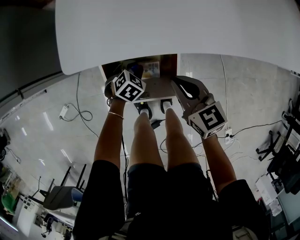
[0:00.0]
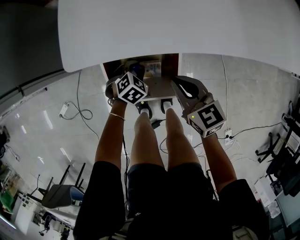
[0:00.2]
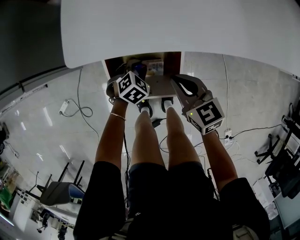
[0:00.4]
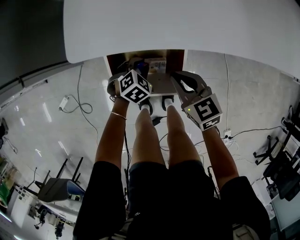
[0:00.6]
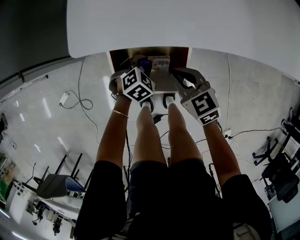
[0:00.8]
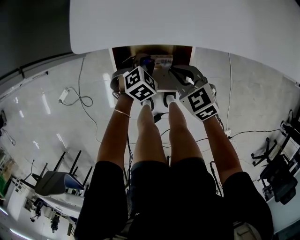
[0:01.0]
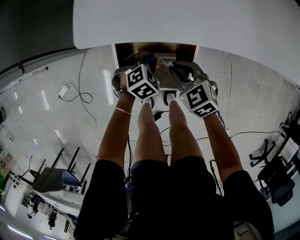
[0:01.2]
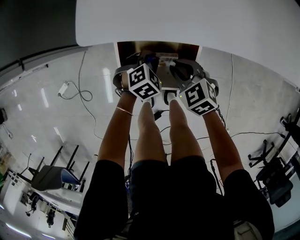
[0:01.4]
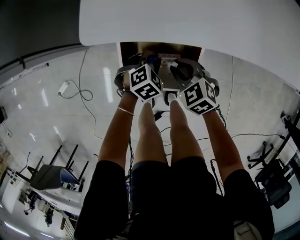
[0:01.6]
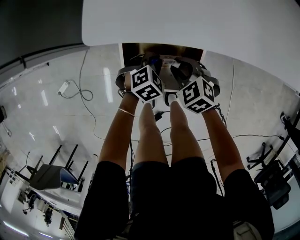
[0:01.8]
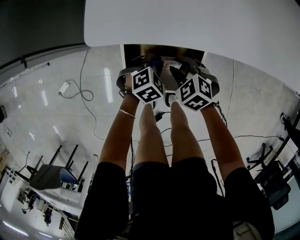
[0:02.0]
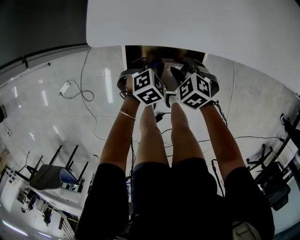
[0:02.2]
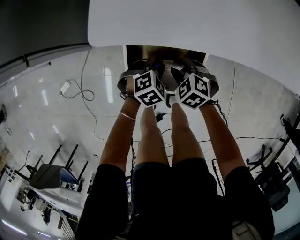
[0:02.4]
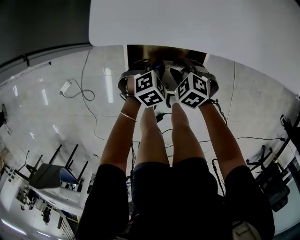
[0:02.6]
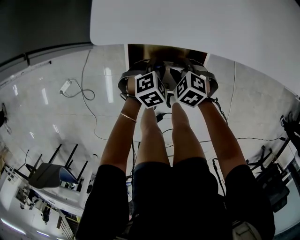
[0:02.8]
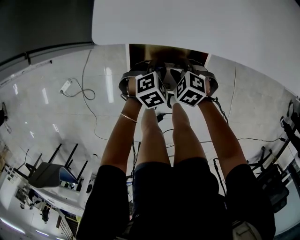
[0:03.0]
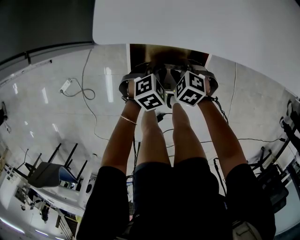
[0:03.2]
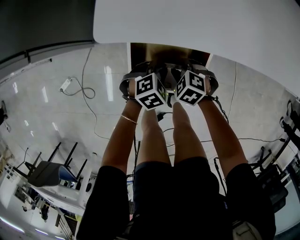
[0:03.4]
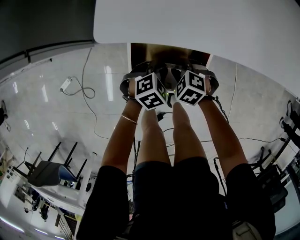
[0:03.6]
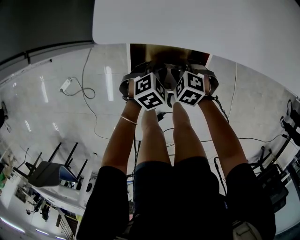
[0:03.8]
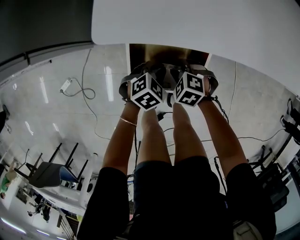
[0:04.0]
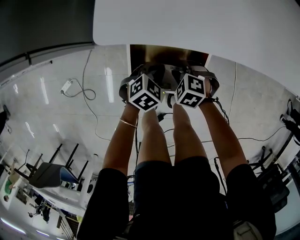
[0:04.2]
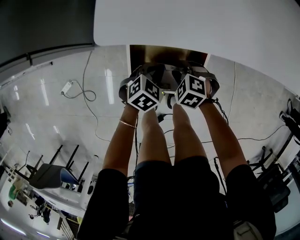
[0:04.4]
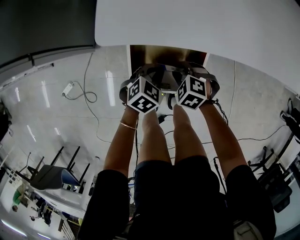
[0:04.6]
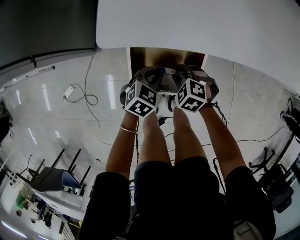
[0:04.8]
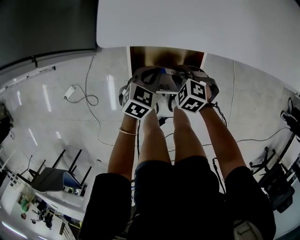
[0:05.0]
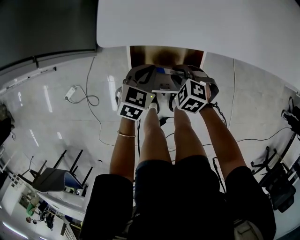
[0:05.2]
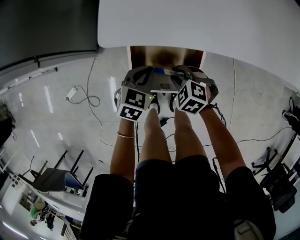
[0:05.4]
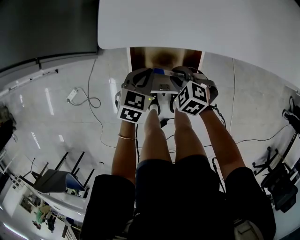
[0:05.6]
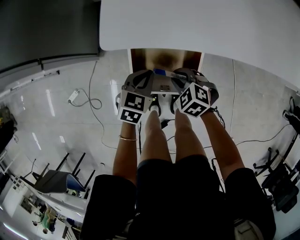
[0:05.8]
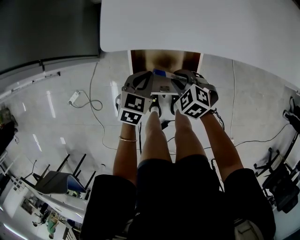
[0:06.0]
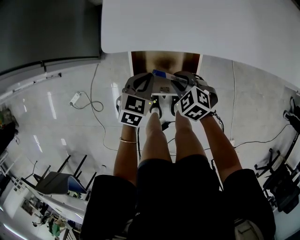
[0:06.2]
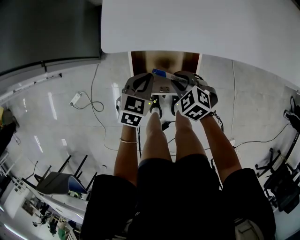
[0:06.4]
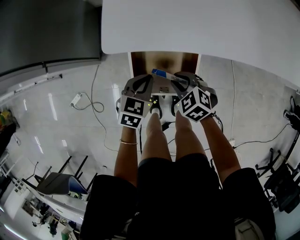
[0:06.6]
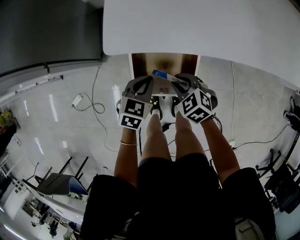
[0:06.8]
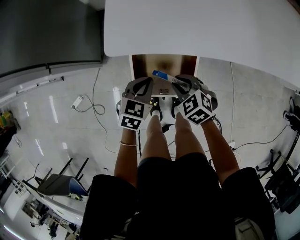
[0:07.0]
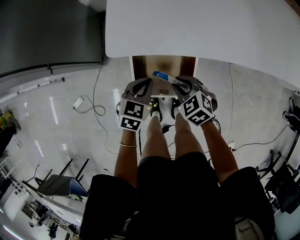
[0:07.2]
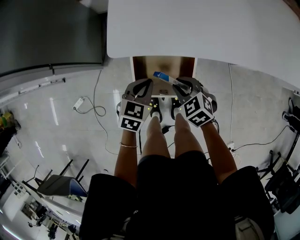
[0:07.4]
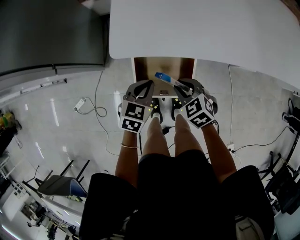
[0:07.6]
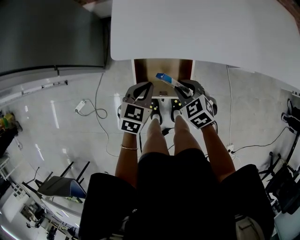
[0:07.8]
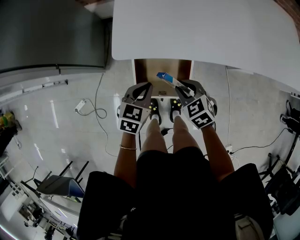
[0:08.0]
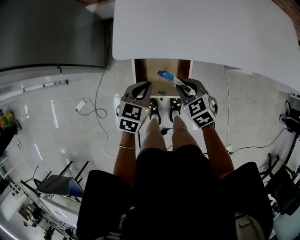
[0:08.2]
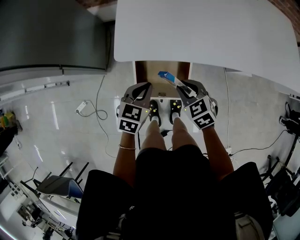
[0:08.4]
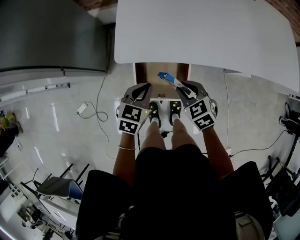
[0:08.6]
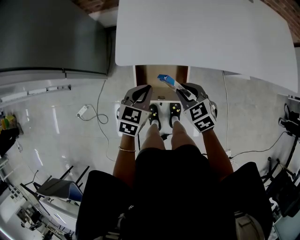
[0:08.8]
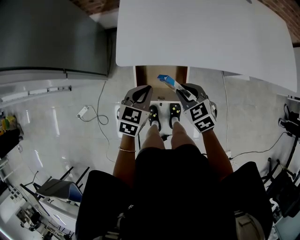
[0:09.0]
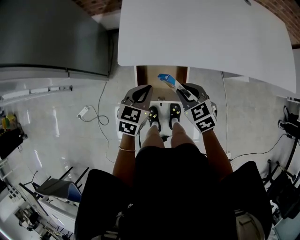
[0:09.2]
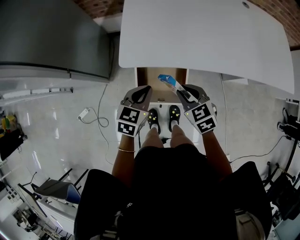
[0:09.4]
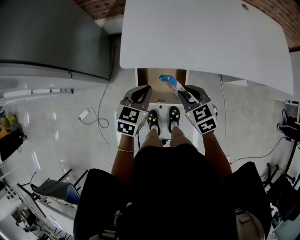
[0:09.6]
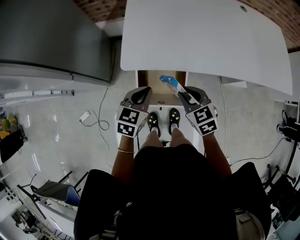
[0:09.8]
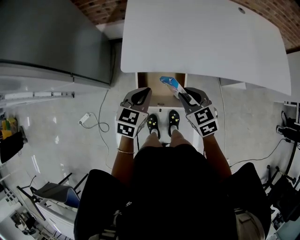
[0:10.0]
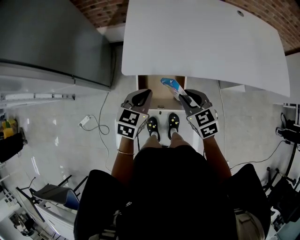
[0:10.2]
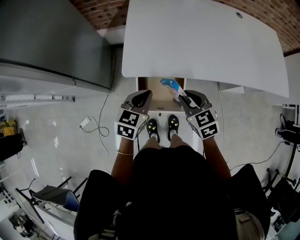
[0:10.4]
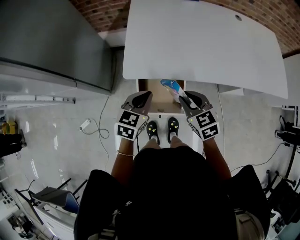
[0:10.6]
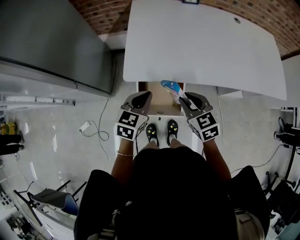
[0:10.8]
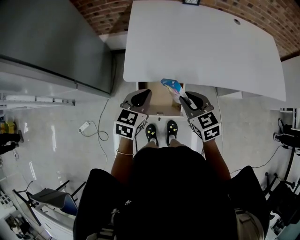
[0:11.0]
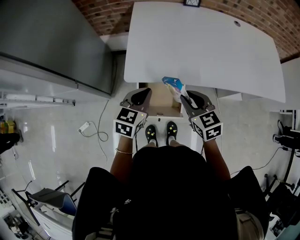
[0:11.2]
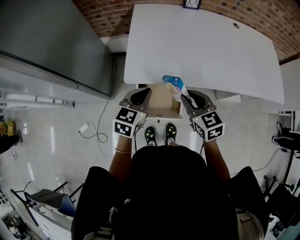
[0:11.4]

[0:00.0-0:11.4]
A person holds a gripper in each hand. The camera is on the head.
0:00.0 to 0:01.4: The right gripper goes about 10 cm downward and to the left, and swivels some 40 degrees.
0:01.4 to 0:02.8: The right gripper shifts roughly 5 cm downward, and swivels approximately 20 degrees.
0:02.8 to 0:04.2: The grippers move only a little.
0:04.2 to 0:05.6: Both grippers travel together upward, roughly 5 cm. The left gripper swivels some 20 degrees.
0:05.6 to 0:07.2: Both grippers travel together upward, roughly 5 cm.
0:07.2 to 0:08.6: The grippers both shift upward by roughly 10 cm.
0:08.6 to 0:10.0: The grippers both shift upward by roughly 10 cm.
0:10.0 to 0:11.4: Both grippers move upward, about 5 cm.

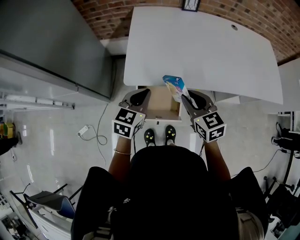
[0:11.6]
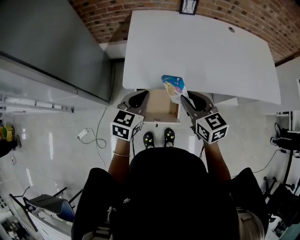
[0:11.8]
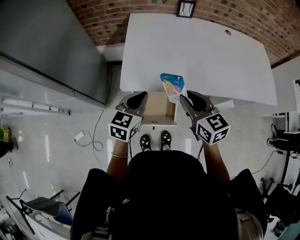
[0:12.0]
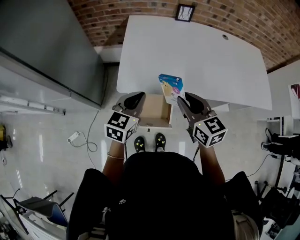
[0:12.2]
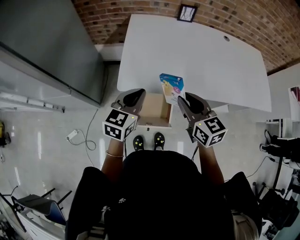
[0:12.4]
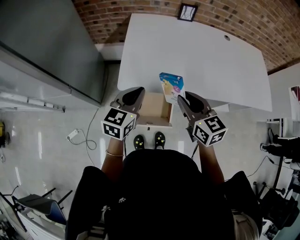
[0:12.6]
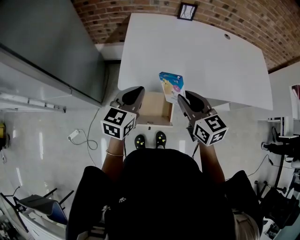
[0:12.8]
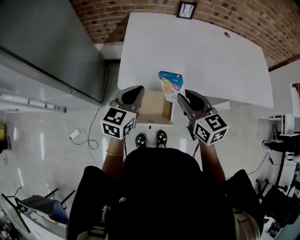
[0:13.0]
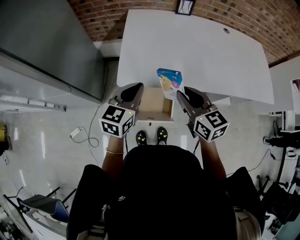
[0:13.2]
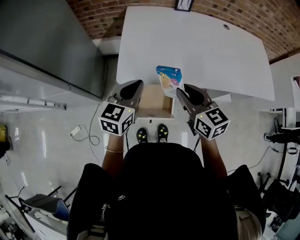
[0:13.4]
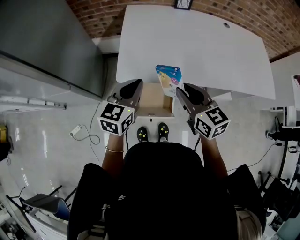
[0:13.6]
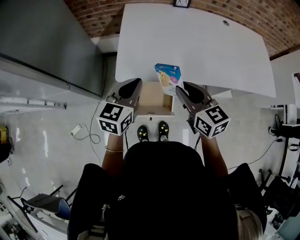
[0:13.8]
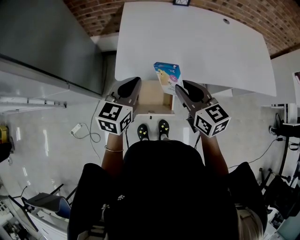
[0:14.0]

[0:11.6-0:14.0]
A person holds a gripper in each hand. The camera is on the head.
0:11.6 to 0:12.8: The right gripper shifts some 5 cm upward.
0:12.8 to 0:14.0: Both grippers stay about where they are.

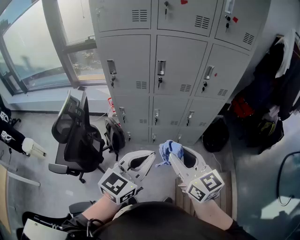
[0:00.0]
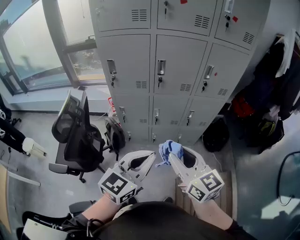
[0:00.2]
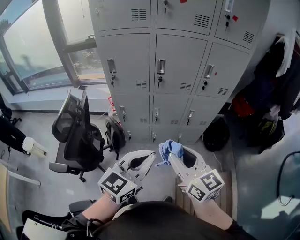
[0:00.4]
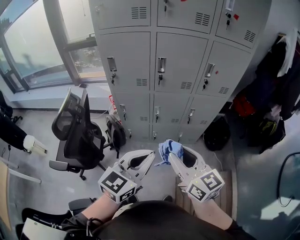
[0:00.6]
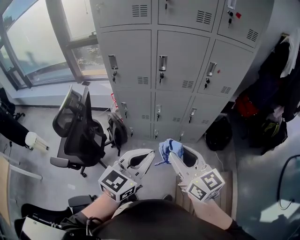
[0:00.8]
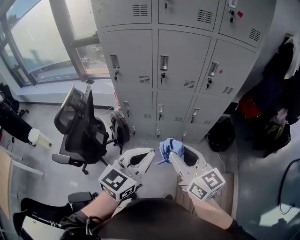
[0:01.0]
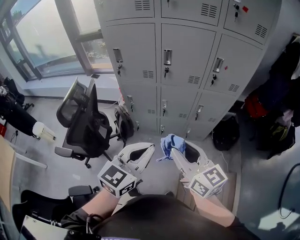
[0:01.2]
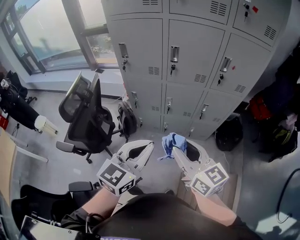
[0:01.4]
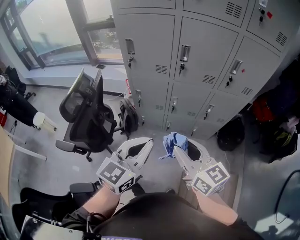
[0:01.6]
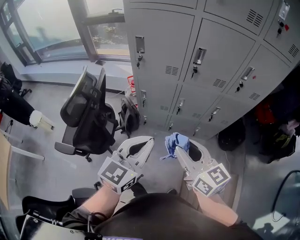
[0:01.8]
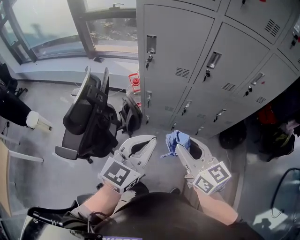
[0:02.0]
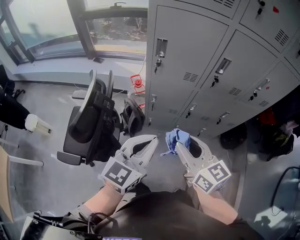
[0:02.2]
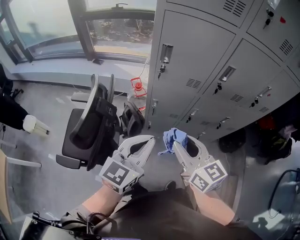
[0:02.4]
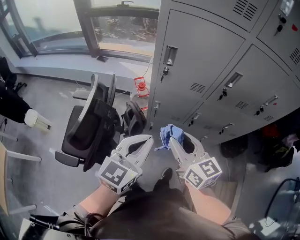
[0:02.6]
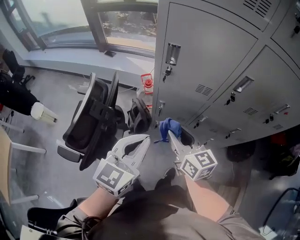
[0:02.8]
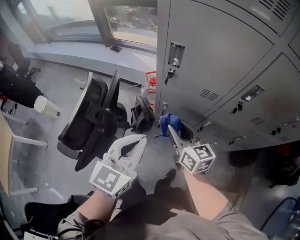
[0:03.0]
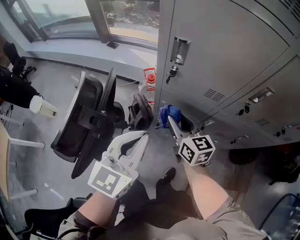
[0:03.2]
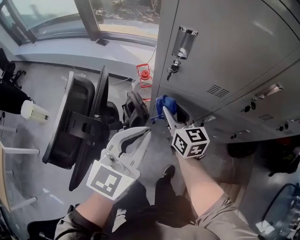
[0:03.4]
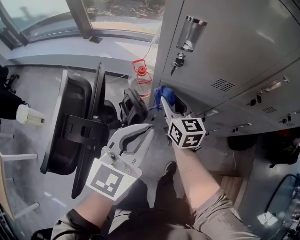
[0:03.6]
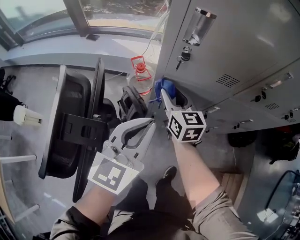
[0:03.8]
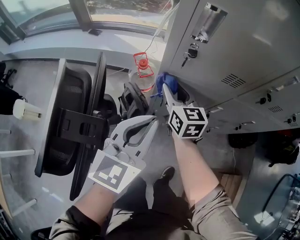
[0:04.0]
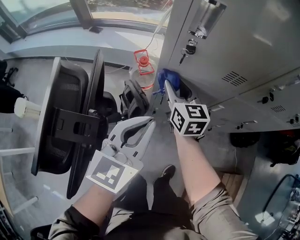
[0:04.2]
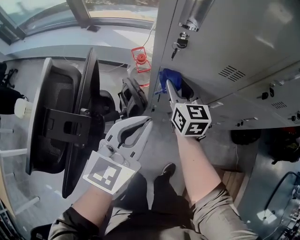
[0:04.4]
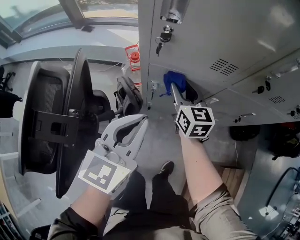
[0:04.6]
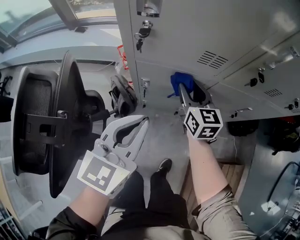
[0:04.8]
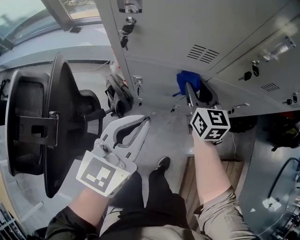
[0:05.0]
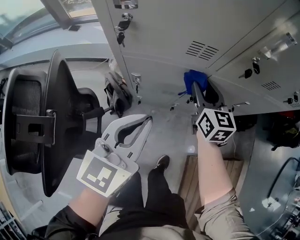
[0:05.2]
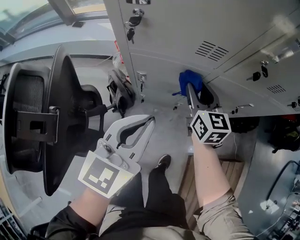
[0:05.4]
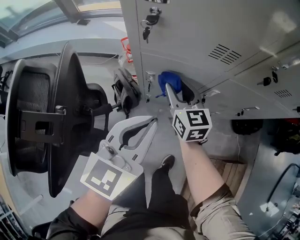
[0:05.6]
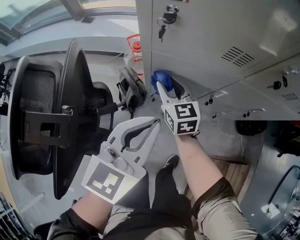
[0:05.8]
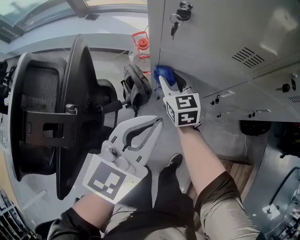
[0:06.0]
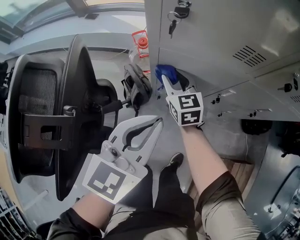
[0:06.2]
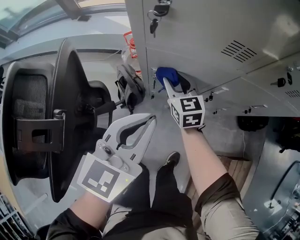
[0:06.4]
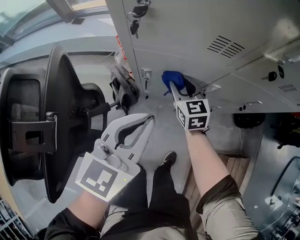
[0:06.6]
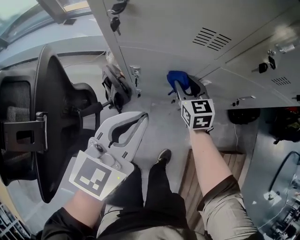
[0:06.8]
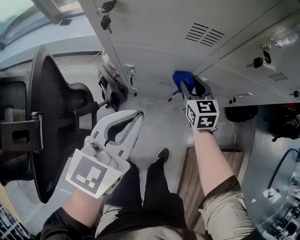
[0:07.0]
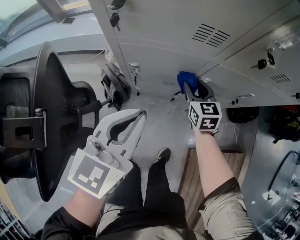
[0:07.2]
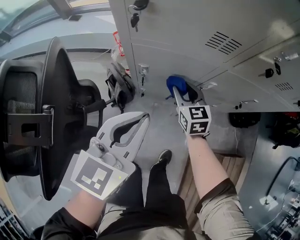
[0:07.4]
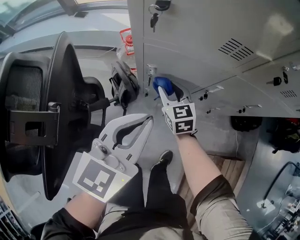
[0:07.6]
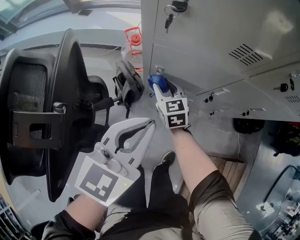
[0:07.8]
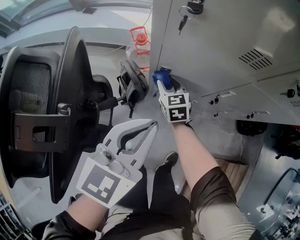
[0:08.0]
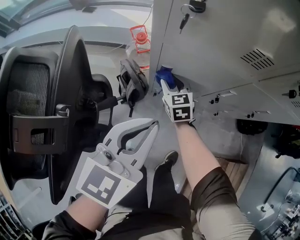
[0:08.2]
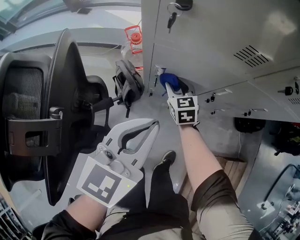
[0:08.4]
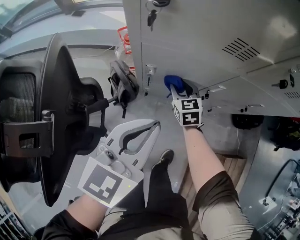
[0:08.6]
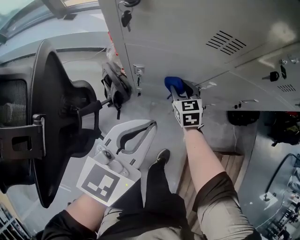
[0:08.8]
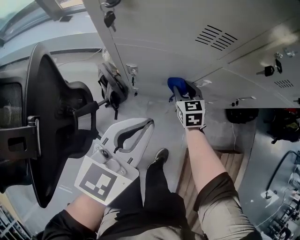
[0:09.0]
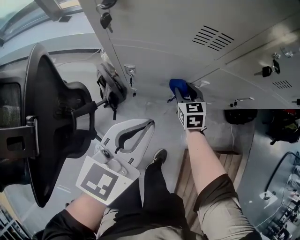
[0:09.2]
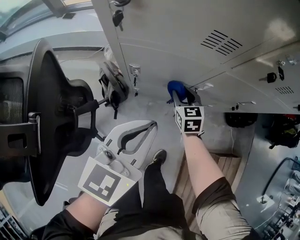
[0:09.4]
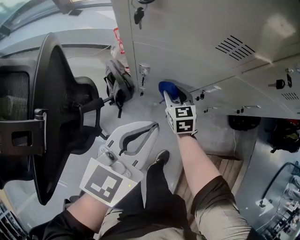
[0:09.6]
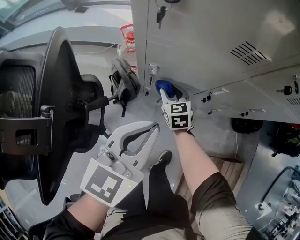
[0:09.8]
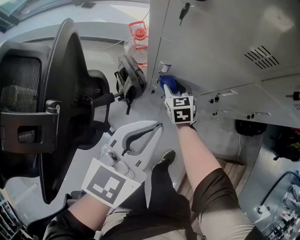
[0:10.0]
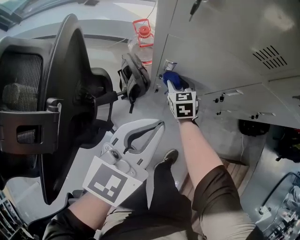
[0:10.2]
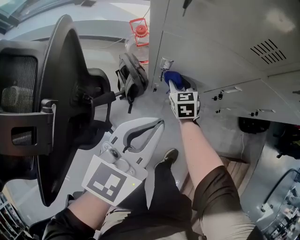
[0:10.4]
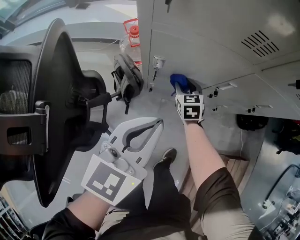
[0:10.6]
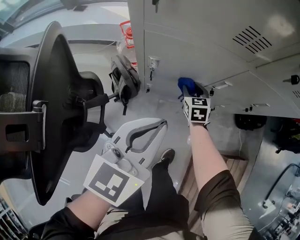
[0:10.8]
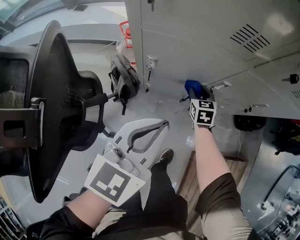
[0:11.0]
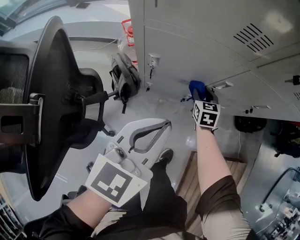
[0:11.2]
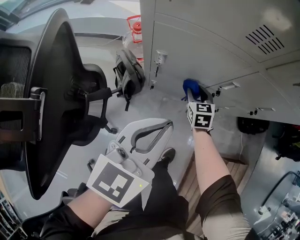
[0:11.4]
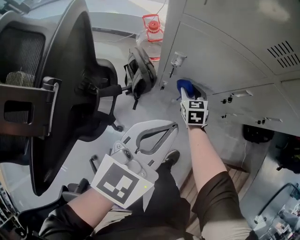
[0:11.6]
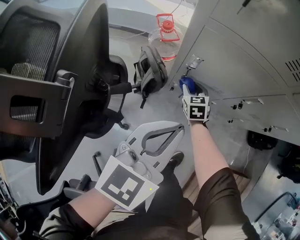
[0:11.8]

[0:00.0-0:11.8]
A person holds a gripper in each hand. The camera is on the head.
0:00.0 to 0:01.4: The grippers make only small movements.
0:01.4 to 0:03.0: The right gripper shifts some 40 cm forward, to the left and downward. The left gripper travels forward and to the left by about 35 cm.
0:03.0 to 0:04.4: The left gripper moves downward and forward, roughly 15 cm, while the right gripper moves forward and downward, roughly 20 cm, and rotates about 20 degrees.
0:04.4 to 0:06.0: The left gripper goes to the right and returns, approximately 10 cm each way. The right gripper heads downward, covering approximately 10 cm, and travels to the right and back again, approximately 20 cm each way.
0:06.0 to 0:07.4: The right gripper travels to the right by some 15 cm.
0:07.4 to 0:08.8: The right gripper goes roughly 5 cm downward, and goes to the left and returns, some 15 cm each way.
0:08.8 to 0:10.4: The right gripper moves to the left and downward, about 10 cm; the left gripper shifts by about 5 cm.
0:10.4 to 0:11.8: The right gripper shifts about 5 cm downward, and goes to the right and returns, some 15 cm each way.
